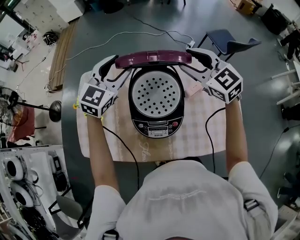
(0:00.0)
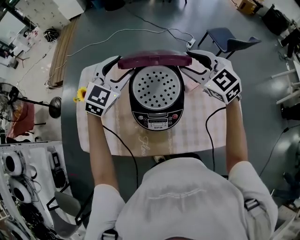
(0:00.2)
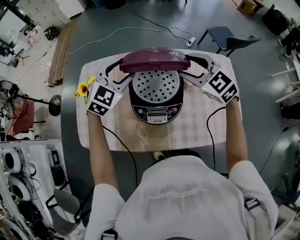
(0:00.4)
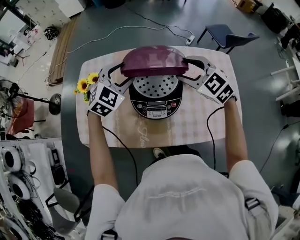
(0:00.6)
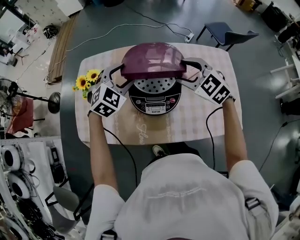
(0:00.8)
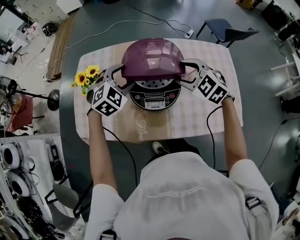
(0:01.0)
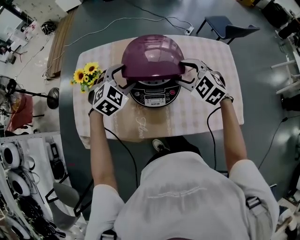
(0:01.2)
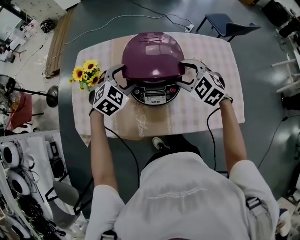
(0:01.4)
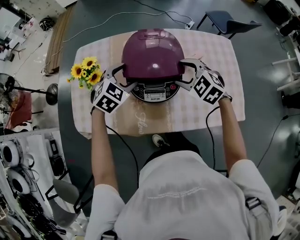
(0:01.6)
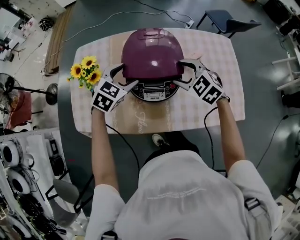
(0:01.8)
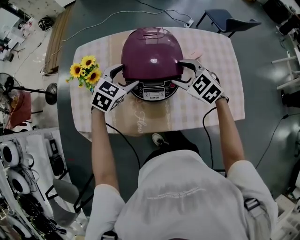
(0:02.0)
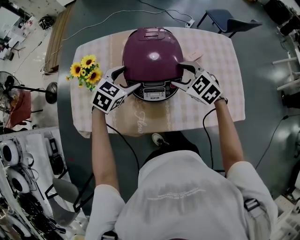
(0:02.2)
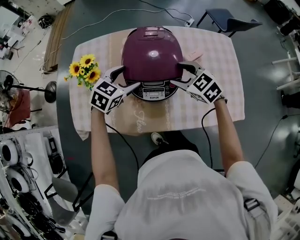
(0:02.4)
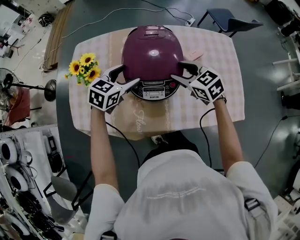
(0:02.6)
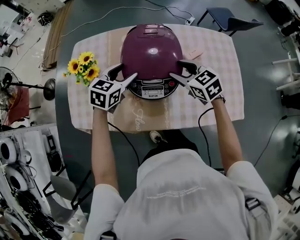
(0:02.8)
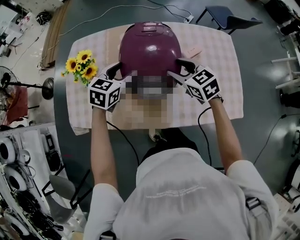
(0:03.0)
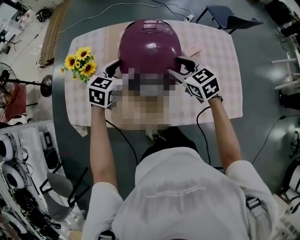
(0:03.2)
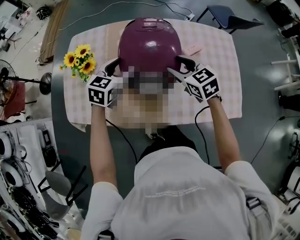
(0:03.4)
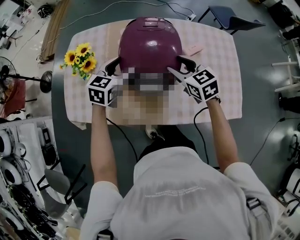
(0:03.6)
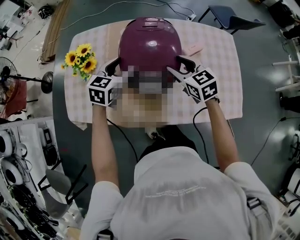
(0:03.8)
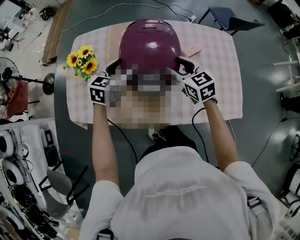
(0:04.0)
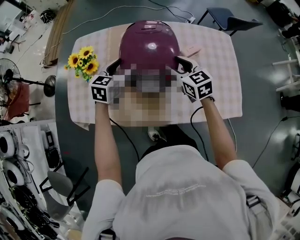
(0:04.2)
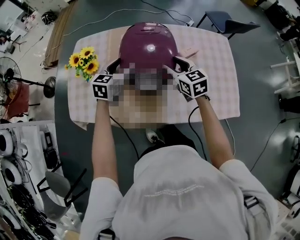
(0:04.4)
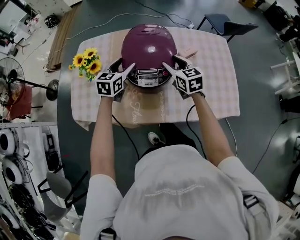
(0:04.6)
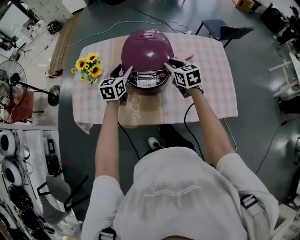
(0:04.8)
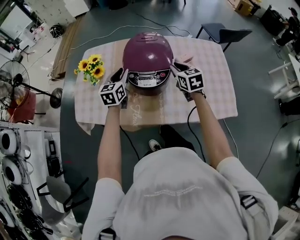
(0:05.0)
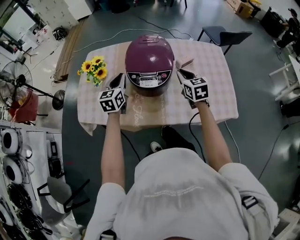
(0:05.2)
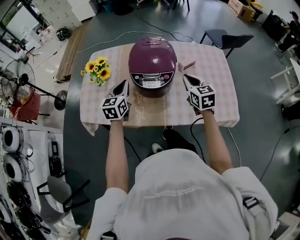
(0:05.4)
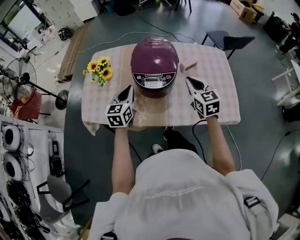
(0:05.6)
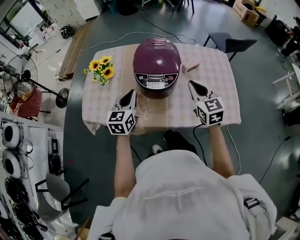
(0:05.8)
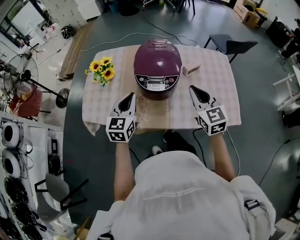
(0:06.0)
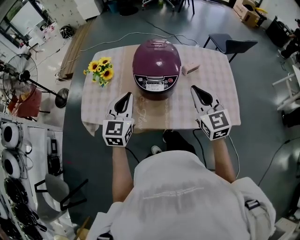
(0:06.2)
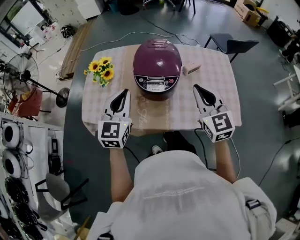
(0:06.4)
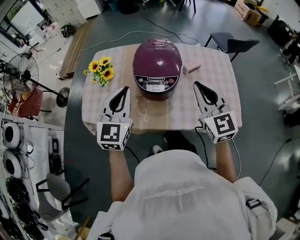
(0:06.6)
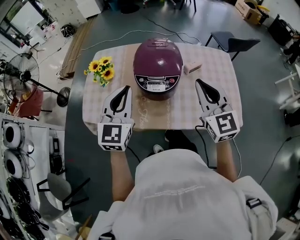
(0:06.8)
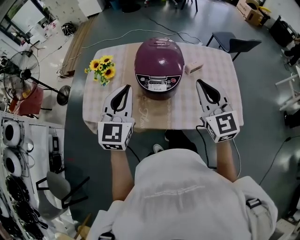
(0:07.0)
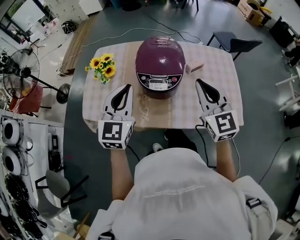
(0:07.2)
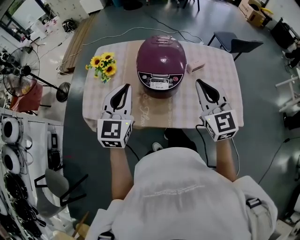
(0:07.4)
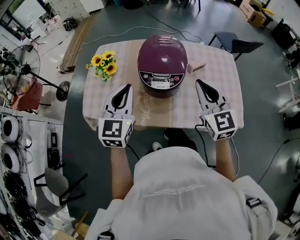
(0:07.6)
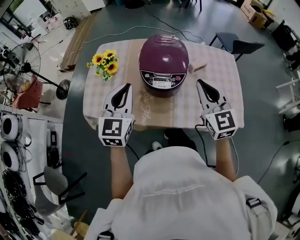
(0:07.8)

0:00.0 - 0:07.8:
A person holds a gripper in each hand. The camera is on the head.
0:00.0 - 0:01.6: Both grippers travel together downward and backward, roughly 20 cm. The right gripper turns by approximately 30 degrees. The left gripper tips its fingers downward by about 30 degrees.
0:01.6 - 0:03.2: The left gripper turns by approximately 30 degrees. Meanwhile the right gripper changes its angle by approximately 30 degrees.
0:03.2 - 0:04.6: There are only small adjustments of the grippers.
0:04.6 - 0:06.2: The grippers both shift backward and upward by about 20 cm. The right gripper rotates some 20 degrees, and closes up. Meanwhile the left gripper turns by some 20 degrees, and closes up.

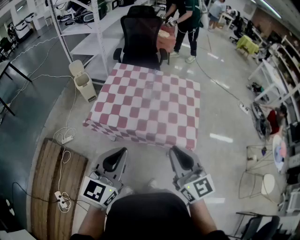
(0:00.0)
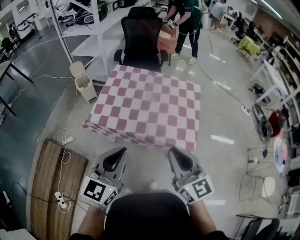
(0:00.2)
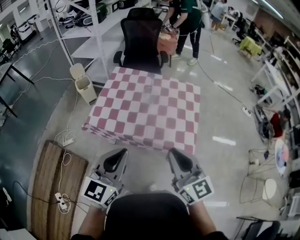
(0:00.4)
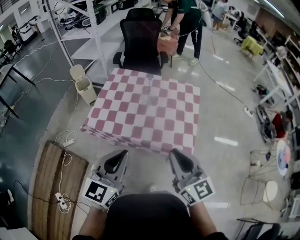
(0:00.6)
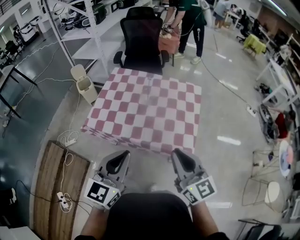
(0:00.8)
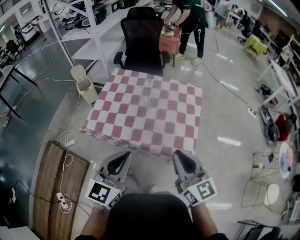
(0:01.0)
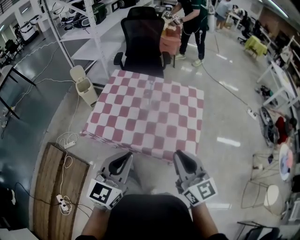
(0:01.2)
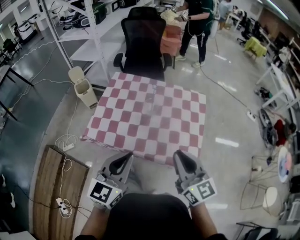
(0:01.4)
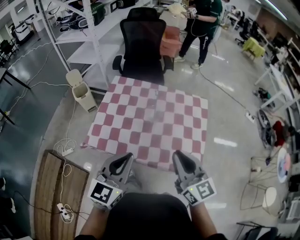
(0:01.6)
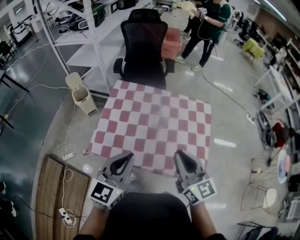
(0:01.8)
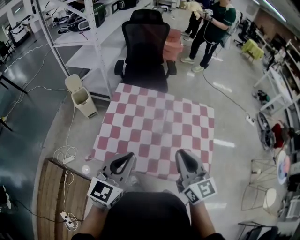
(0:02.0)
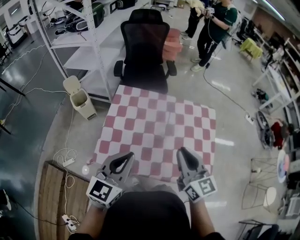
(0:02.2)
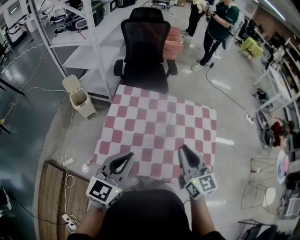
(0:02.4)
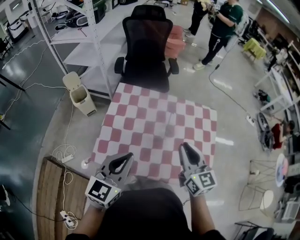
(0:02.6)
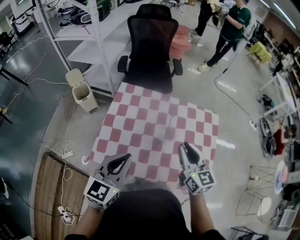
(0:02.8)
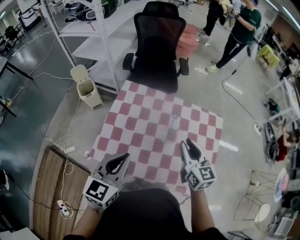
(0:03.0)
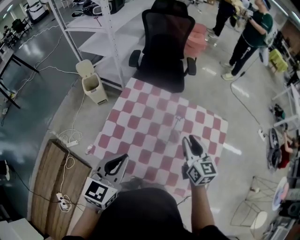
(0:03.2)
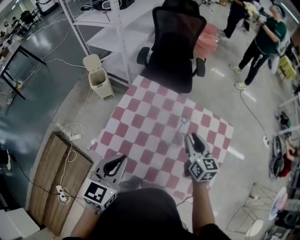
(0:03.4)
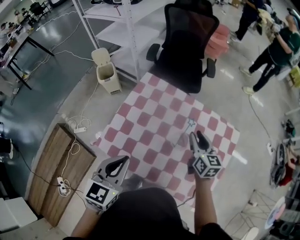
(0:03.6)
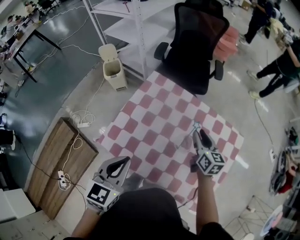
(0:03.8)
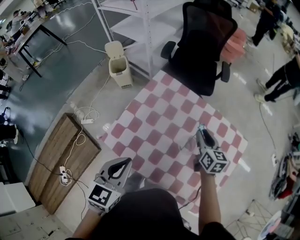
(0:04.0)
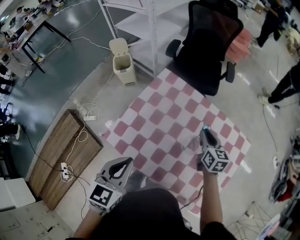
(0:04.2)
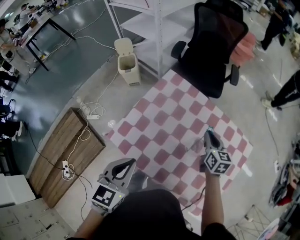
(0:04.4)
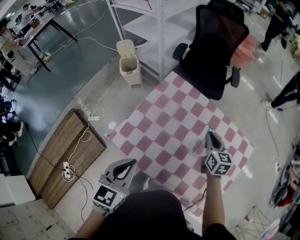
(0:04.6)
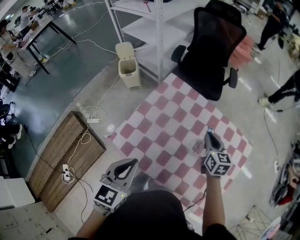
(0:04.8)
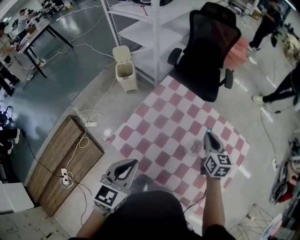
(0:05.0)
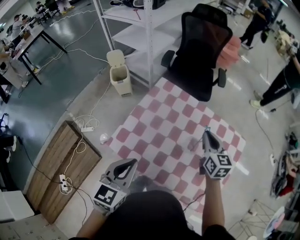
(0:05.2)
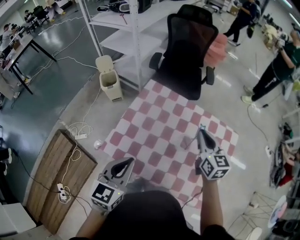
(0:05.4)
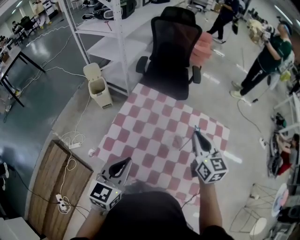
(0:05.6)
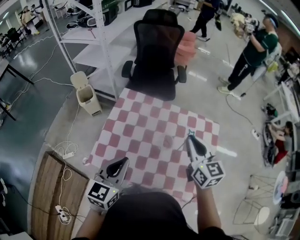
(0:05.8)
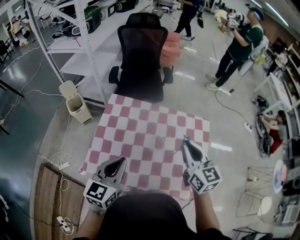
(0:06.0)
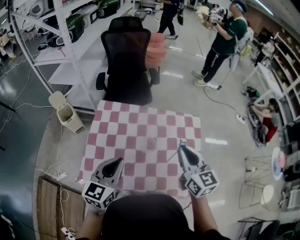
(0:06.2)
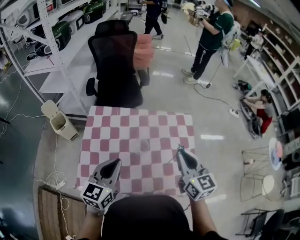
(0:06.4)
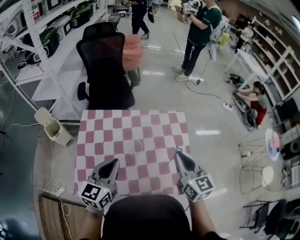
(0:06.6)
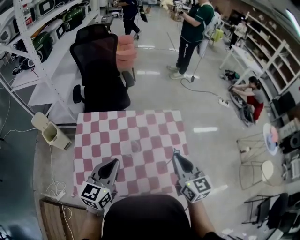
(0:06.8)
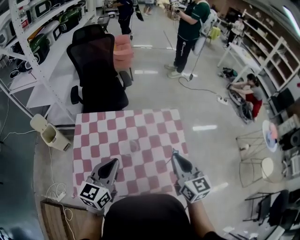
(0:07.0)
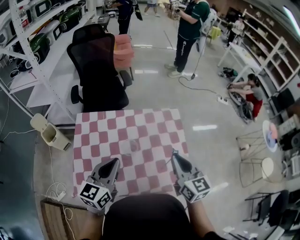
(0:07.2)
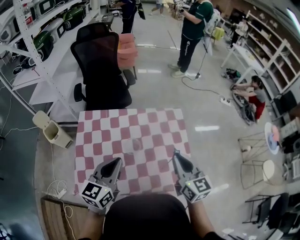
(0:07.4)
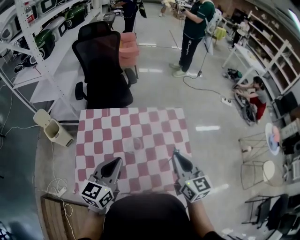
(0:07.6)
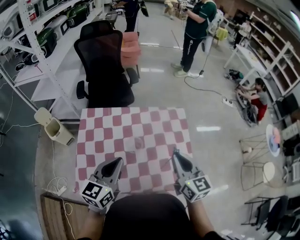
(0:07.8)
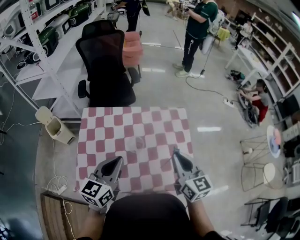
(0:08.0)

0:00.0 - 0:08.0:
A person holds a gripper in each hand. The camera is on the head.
0:00.0 - 0:01.6: Both grippers travel together forward, about 20 cm.
0:01.6 - 0:03.2: The left gripper heads forward and to the left, covering some 20 cm. Meanwhile the right gripper is displaced forward by about 25 cm.
0:03.2 - 0:04.8: The left gripper moves approximately 5 cm; the right gripper moves forward and downward, about 15 cm.
0:04.8 - 0:06.4: The left gripper changes place by approximately 15 cm, and rotates approximately 30 degrees. Meanwhile the right gripper moves some 30 cm, and swivels about 30 degrees.
0:06.4 - 0:08.0: There are only small adjustments of the grippers.

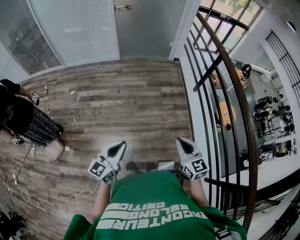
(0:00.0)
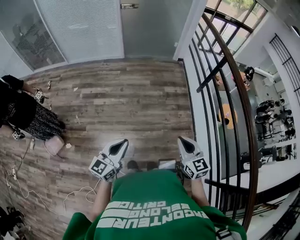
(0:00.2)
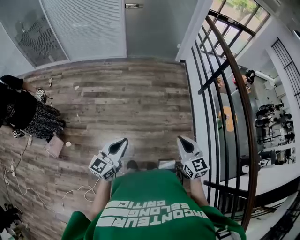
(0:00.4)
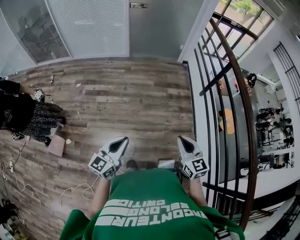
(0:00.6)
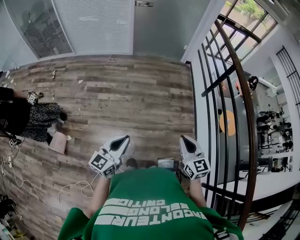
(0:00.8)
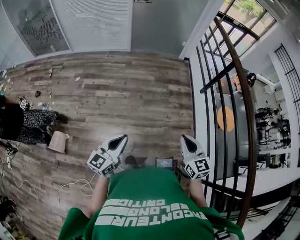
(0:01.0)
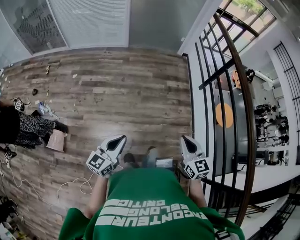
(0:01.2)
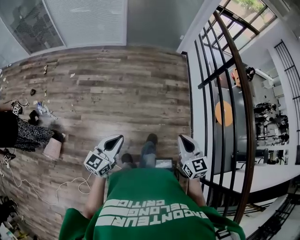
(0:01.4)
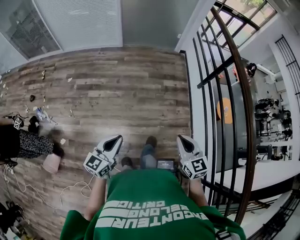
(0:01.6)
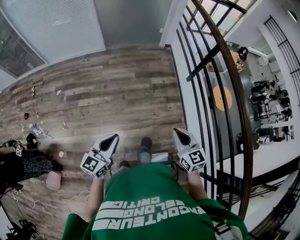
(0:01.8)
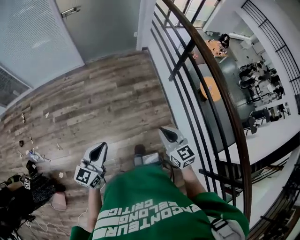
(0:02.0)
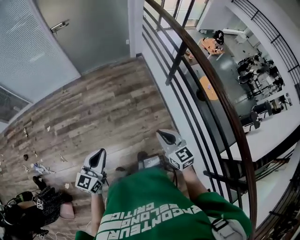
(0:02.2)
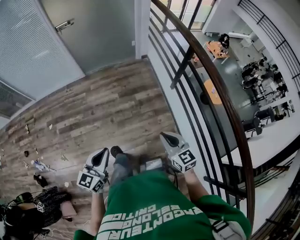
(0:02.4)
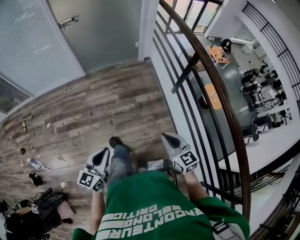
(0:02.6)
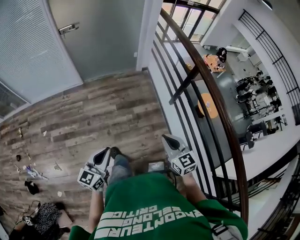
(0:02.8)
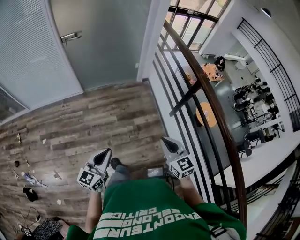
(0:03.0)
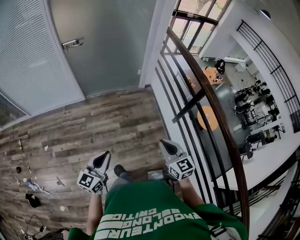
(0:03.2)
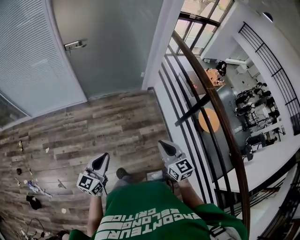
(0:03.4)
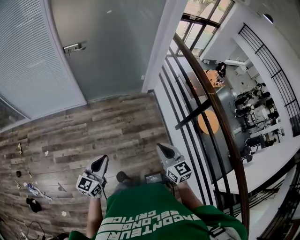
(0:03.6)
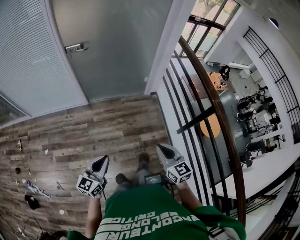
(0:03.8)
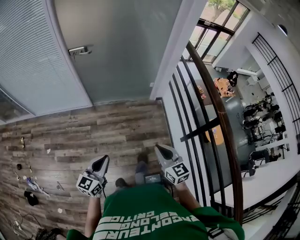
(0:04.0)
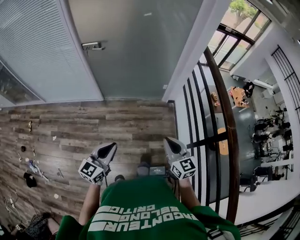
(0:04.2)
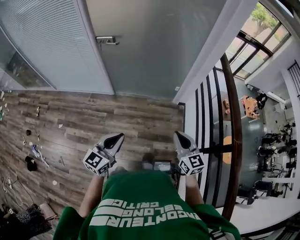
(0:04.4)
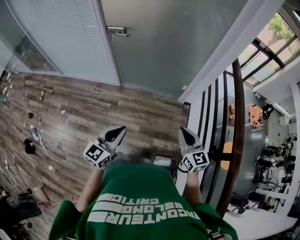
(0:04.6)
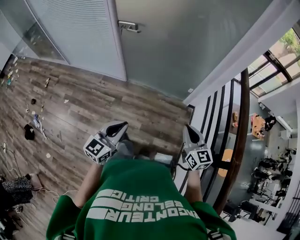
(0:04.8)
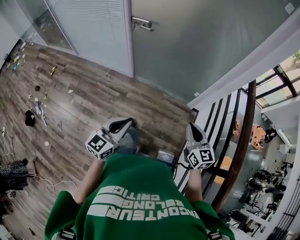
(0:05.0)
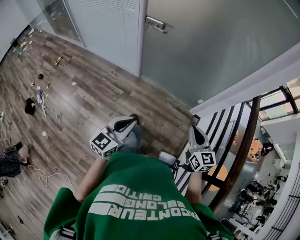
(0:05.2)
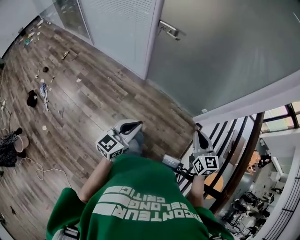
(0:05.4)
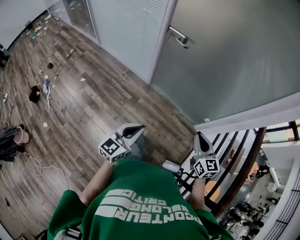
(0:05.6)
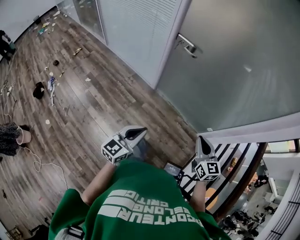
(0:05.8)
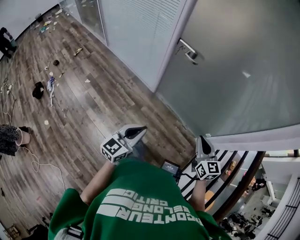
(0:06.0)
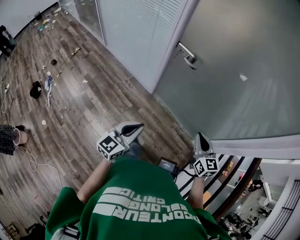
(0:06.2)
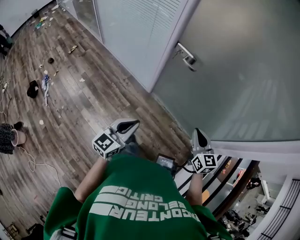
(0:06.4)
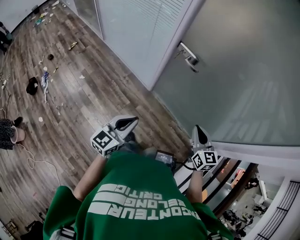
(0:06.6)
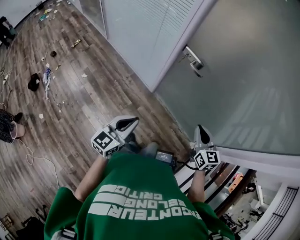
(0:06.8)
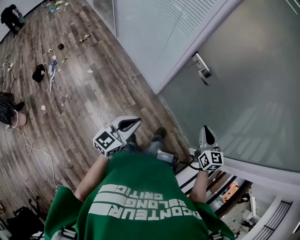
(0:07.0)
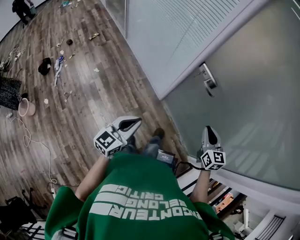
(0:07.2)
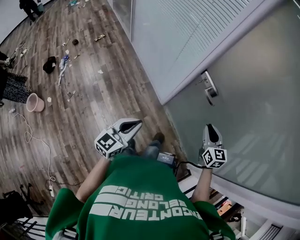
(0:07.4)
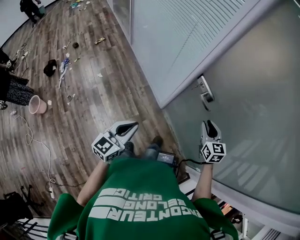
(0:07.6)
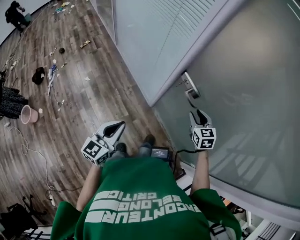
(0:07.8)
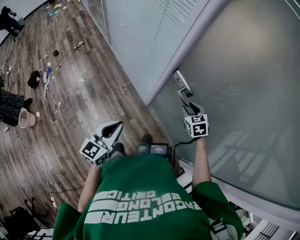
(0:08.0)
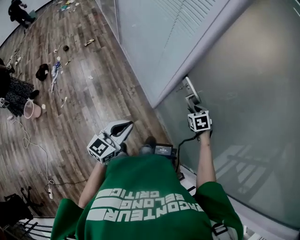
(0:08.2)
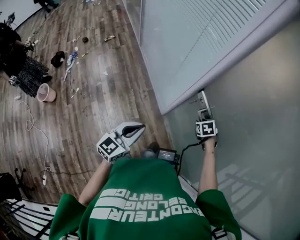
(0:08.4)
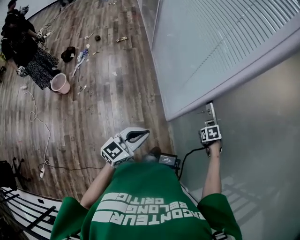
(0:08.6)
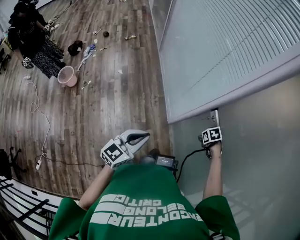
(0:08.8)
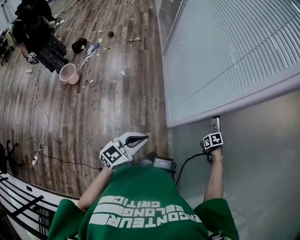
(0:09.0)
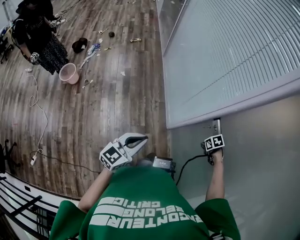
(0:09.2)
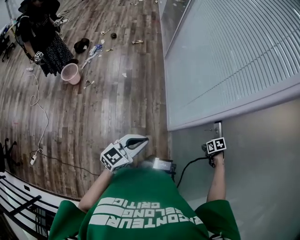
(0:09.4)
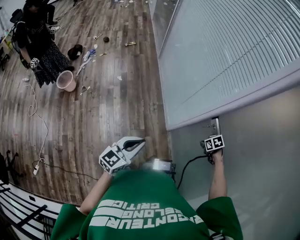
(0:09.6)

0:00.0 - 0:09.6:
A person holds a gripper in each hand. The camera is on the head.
0:00.0 - 0:01.6: Both grippers move forward, approximately 5 cm.
0:01.6 - 0:03.2: Both grippers move forward, roughly 40 cm.
0:03.2 - 0:04.8: Both grippers travel together forward, roughly 30 cm. The right gripper changes its angle by about 20 degrees; the left gripper swivels roughly 20 degrees.
0:04.8 - 0:06.4: The right gripper shifts approximately 30 cm forward, and rotates some 20 degrees. The left gripper travels forward and to the left by about 25 cm, and turns by some 20 degrees.
0:06.4 - 0:08.0: The left gripper shifts approximately 15 cm forward, and turns by some 20 degrees; the right gripper shifts roughly 30 cm forward, turns by roughly 40 degrees, and opens.
0:08.0 - 0:09.6: The right gripper goes some 15 cm downward, points its fingers approximately 30 degrees further downward, and closes.
